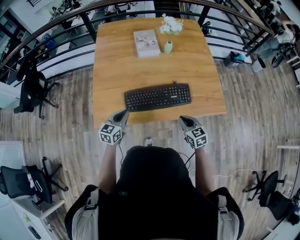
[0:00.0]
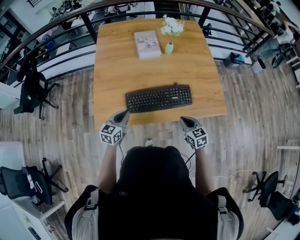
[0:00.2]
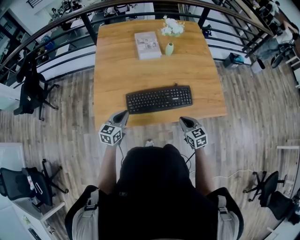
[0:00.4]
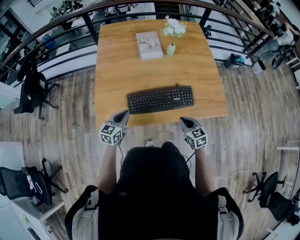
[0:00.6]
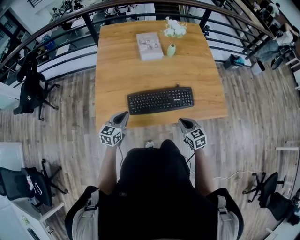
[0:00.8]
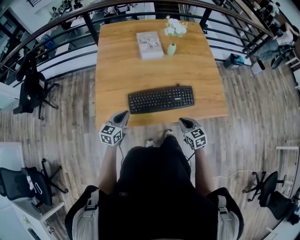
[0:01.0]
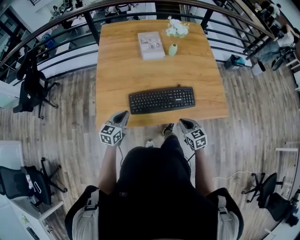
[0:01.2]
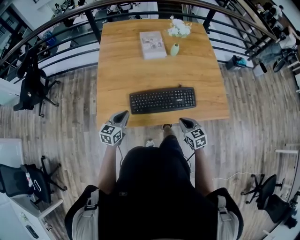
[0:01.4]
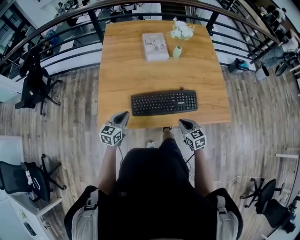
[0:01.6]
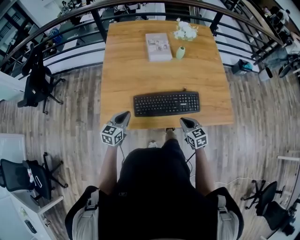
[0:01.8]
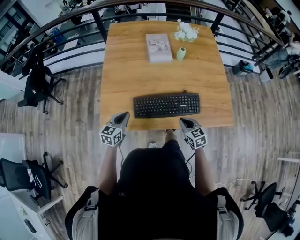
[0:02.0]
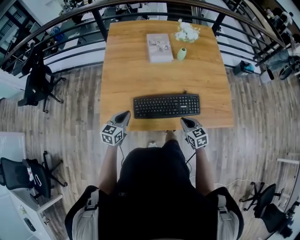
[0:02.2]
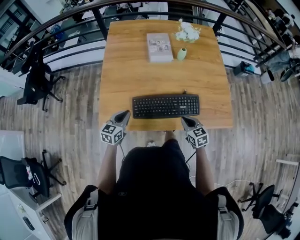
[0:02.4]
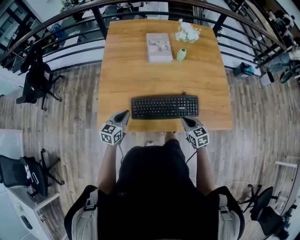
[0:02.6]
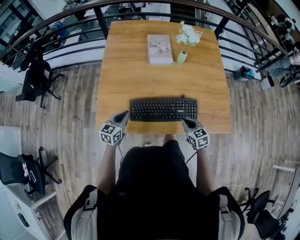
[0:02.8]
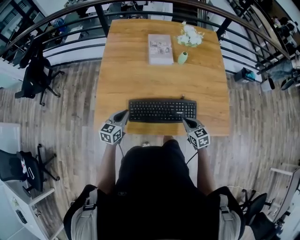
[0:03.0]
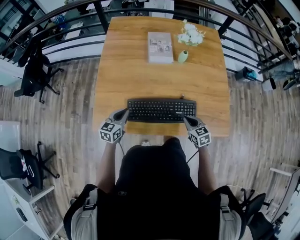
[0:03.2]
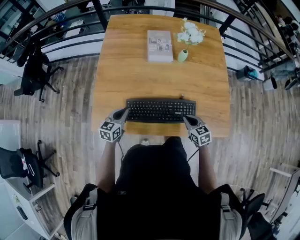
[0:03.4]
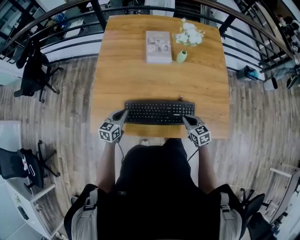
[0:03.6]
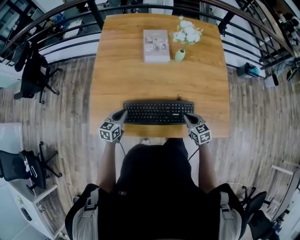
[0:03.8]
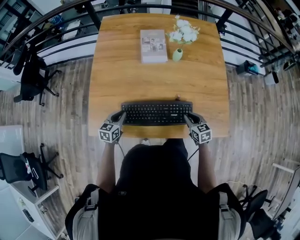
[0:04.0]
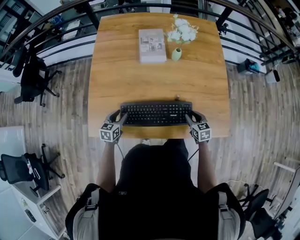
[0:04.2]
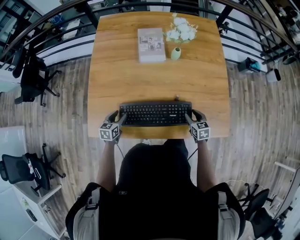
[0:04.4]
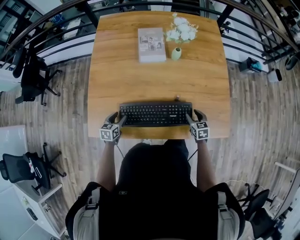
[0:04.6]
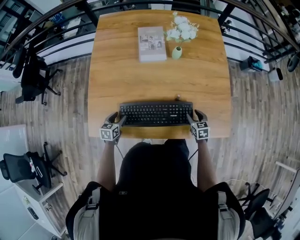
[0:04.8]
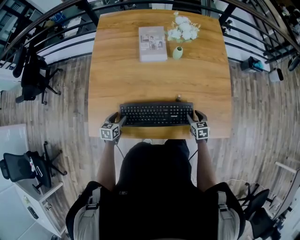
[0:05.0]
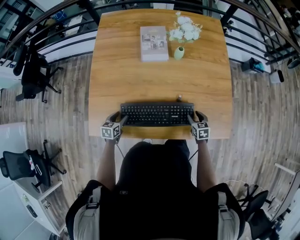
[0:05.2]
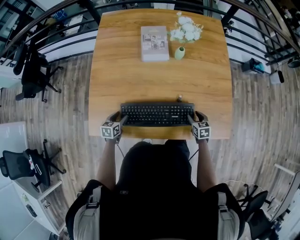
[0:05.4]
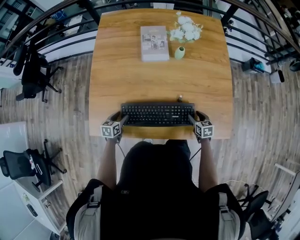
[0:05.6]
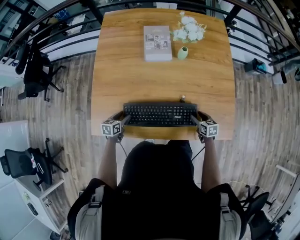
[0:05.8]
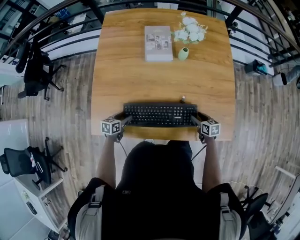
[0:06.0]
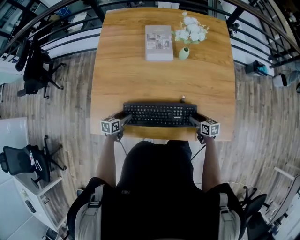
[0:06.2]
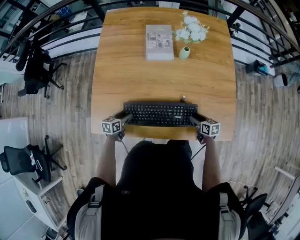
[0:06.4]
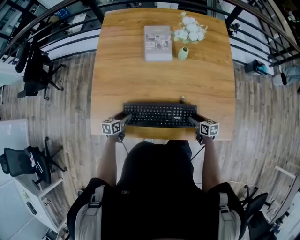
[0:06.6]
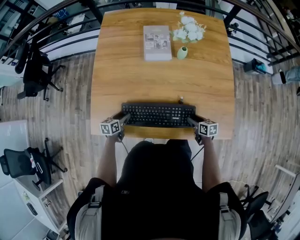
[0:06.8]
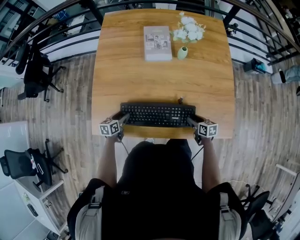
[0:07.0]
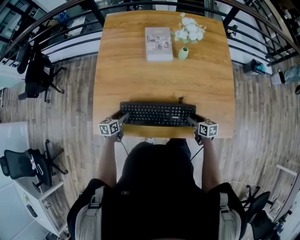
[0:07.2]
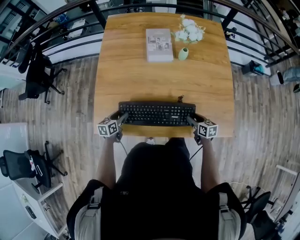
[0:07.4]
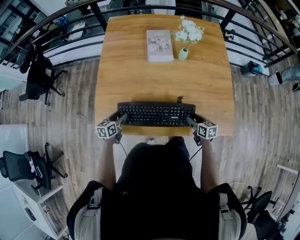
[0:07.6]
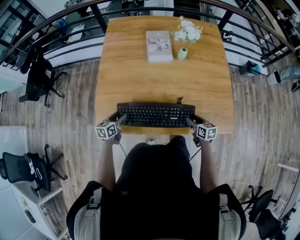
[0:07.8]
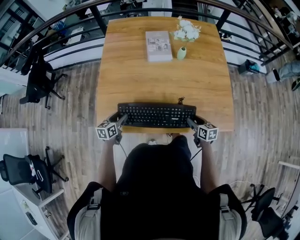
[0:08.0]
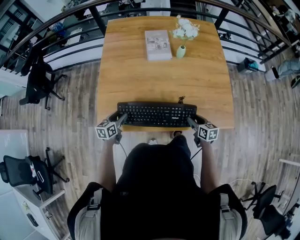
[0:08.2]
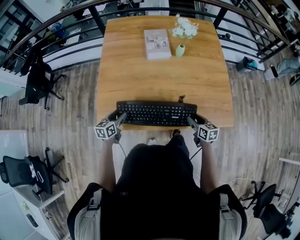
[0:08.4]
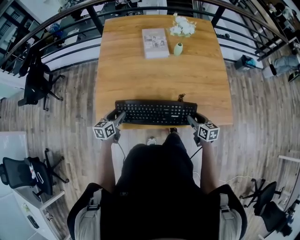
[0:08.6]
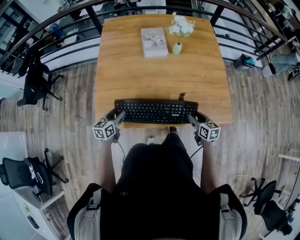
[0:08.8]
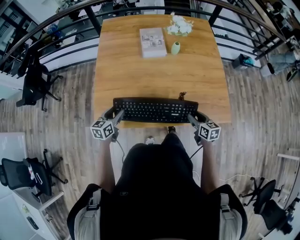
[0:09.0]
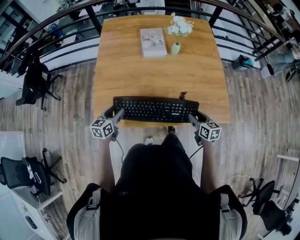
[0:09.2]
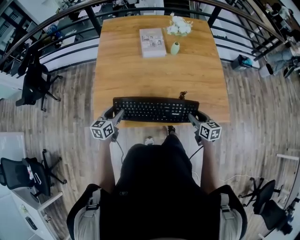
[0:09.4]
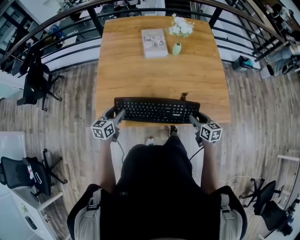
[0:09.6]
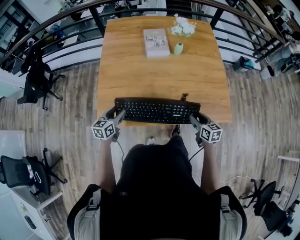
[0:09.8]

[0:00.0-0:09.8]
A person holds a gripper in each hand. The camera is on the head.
0:00.0 to 0:01.4: The grippers move only a little.
0:01.4 to 0:02.8: The left gripper ends up some 5 cm from where it was. Meanwhile the right gripper is displaced forward by some 10 cm.
0:02.8 to 0:04.2: The left gripper goes about 10 cm downward and forward, and opens up; the right gripper moves to the right, forward and downward, some 15 cm, and opens.
0:04.2 to 0:05.6: Both grippers move downward, about 5 cm. The right gripper opens.
0:05.6 to 0:07.0: The grippers make only small movements.
0:07.0 to 0:08.4: Both grippers move upward and backward, some 10 cm.
0:08.4 to 0:09.8: The right gripper shifts by approximately 5 cm, while the left gripper travels upward by some 5 cm.

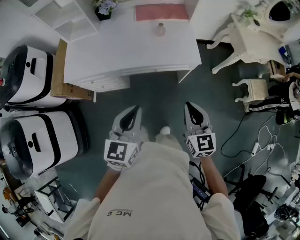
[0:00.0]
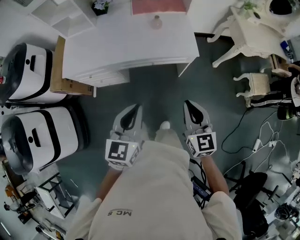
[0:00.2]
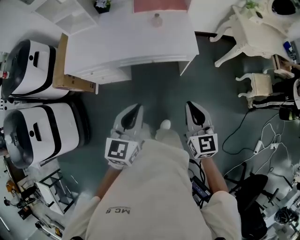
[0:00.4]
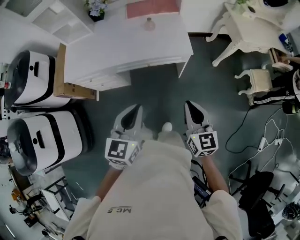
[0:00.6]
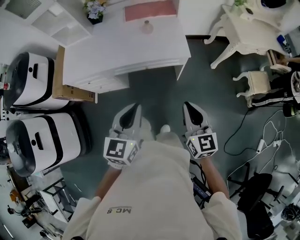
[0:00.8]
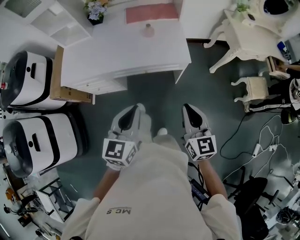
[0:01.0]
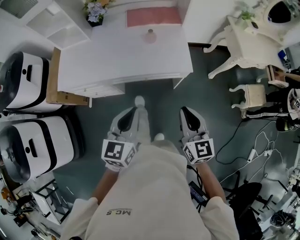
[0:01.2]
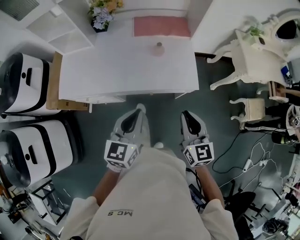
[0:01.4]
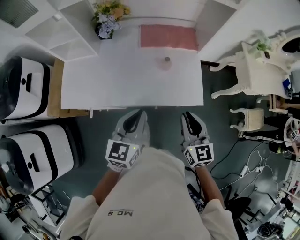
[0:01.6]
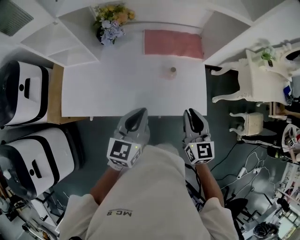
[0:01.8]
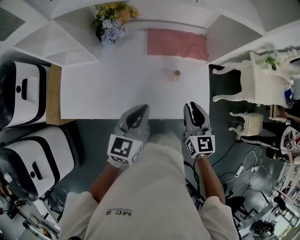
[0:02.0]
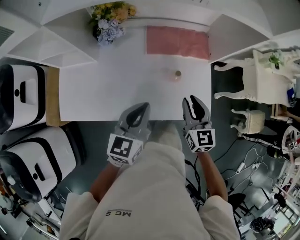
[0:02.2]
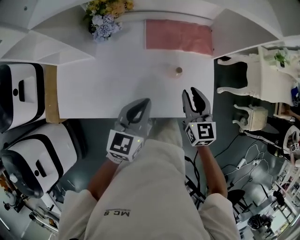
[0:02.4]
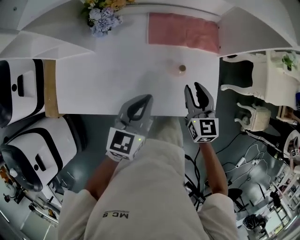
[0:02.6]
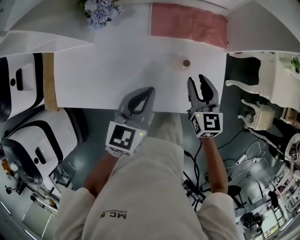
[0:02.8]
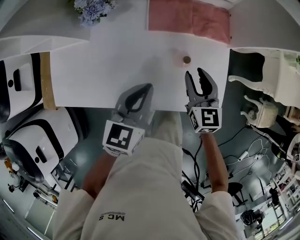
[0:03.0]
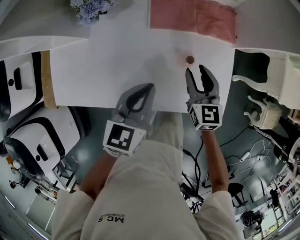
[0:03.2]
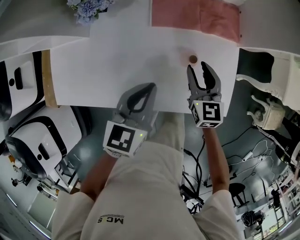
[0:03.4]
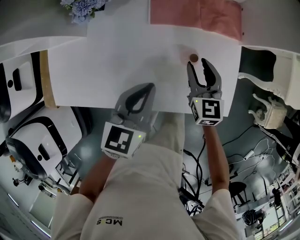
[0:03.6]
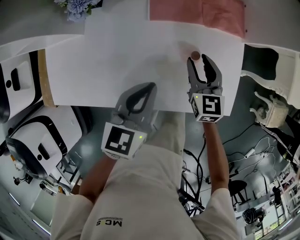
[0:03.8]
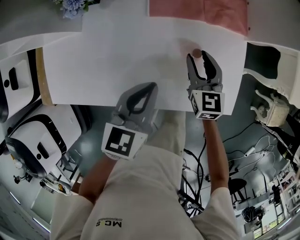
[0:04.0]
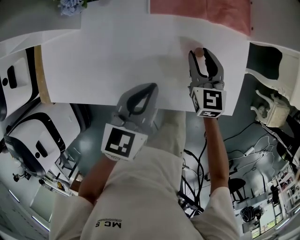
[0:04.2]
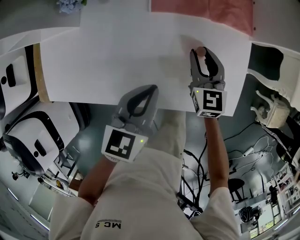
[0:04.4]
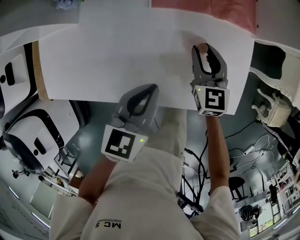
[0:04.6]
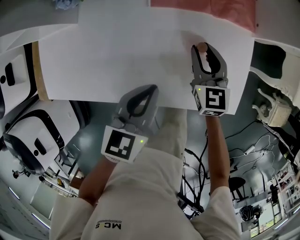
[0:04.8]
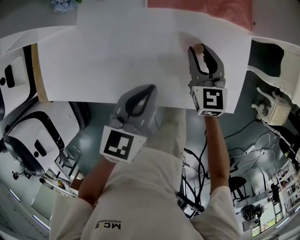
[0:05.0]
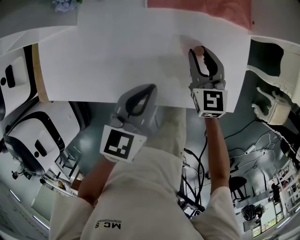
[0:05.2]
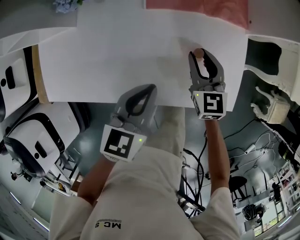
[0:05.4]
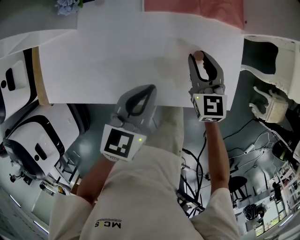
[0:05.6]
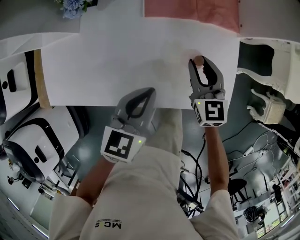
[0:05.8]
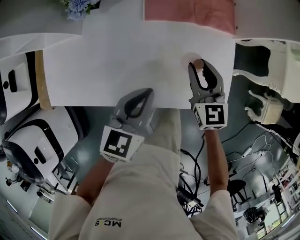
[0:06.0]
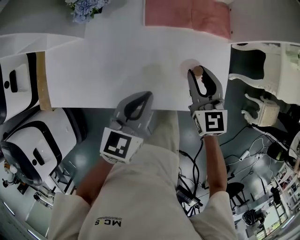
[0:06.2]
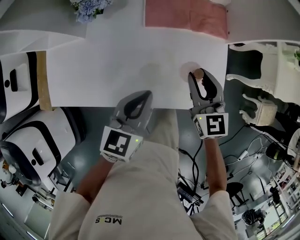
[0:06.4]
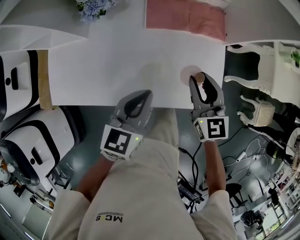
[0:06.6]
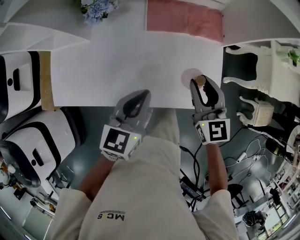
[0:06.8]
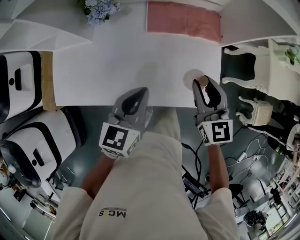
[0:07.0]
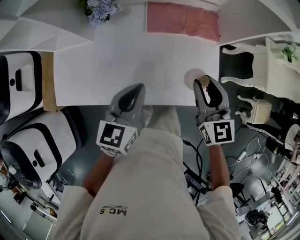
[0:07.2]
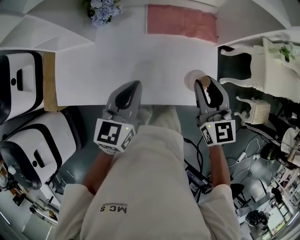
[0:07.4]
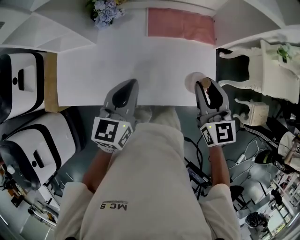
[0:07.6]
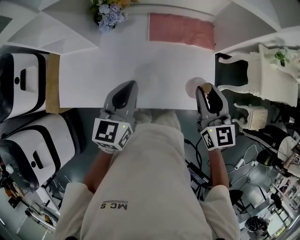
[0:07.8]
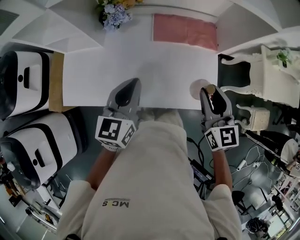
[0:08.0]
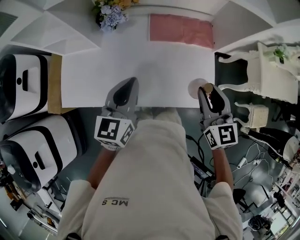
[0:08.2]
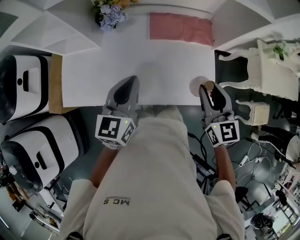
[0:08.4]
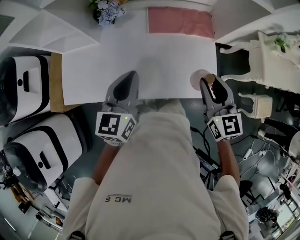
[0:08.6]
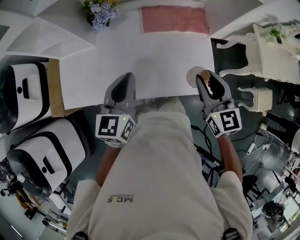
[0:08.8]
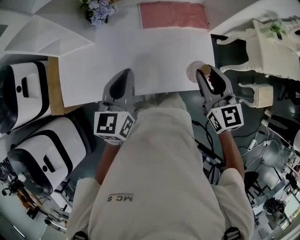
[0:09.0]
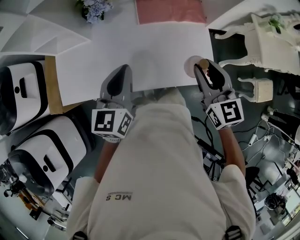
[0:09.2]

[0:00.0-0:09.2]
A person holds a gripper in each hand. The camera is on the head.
0:00.0 to 0:01.6: Both grippers move forward, some 30 cm.
0:01.6 to 0:03.0: The two grippers go approximately 30 cm forward and downward. The right gripper opens its fingers.
0:03.0 to 0:04.6: Both grippers travel together downward, roughly 10 cm.
0:04.6 to 0:06.2: The right gripper goes approximately 15 cm upward and backward, while the left gripper is displaced upward by approximately 10 cm.
0:06.2 to 0:07.6: The left gripper moves upward and to the left, about 15 cm; the right gripper moves upward and backward, about 20 cm.
0:07.6 to 0:09.2: The right gripper is displaced backward by about 5 cm.

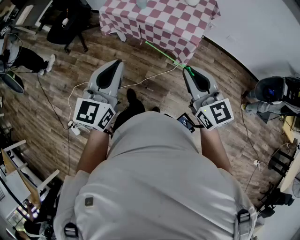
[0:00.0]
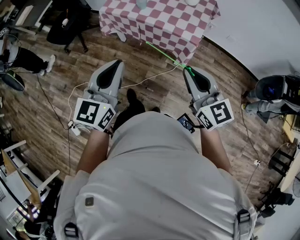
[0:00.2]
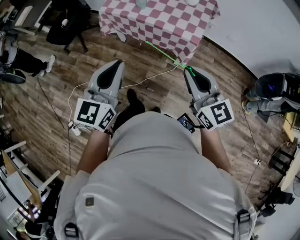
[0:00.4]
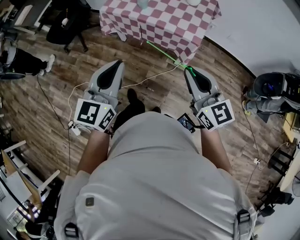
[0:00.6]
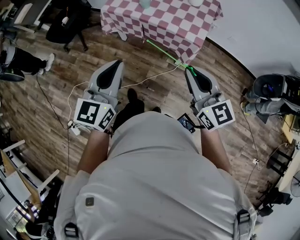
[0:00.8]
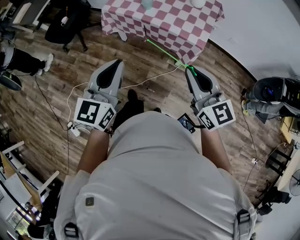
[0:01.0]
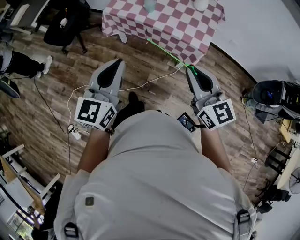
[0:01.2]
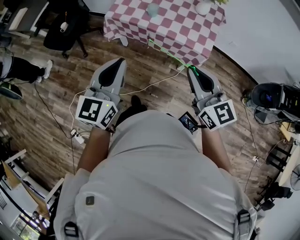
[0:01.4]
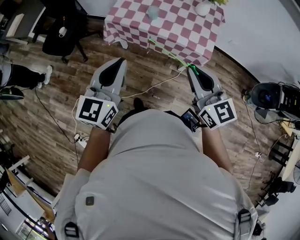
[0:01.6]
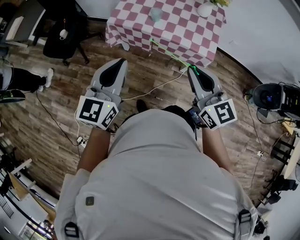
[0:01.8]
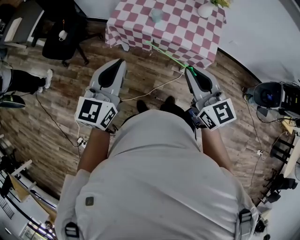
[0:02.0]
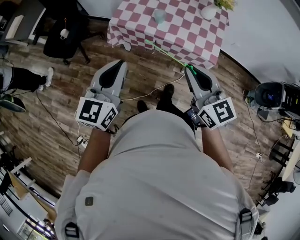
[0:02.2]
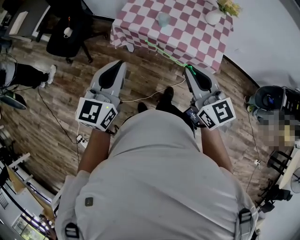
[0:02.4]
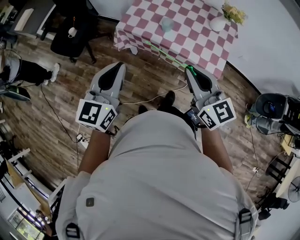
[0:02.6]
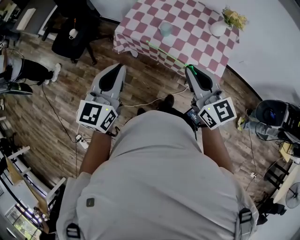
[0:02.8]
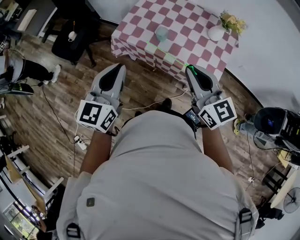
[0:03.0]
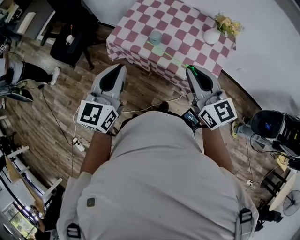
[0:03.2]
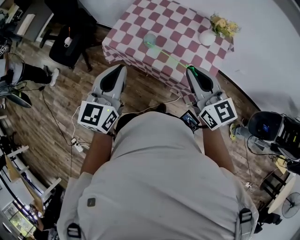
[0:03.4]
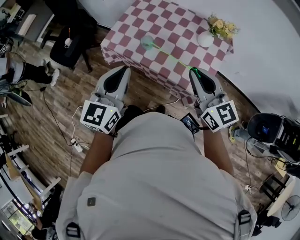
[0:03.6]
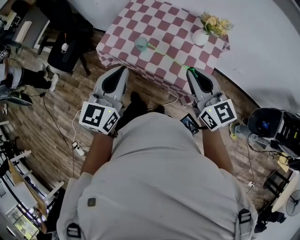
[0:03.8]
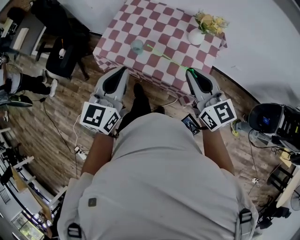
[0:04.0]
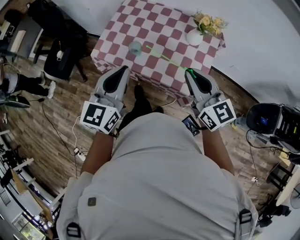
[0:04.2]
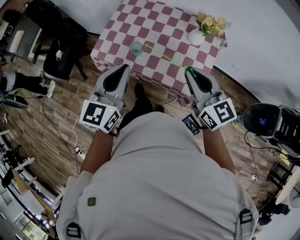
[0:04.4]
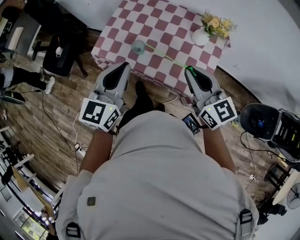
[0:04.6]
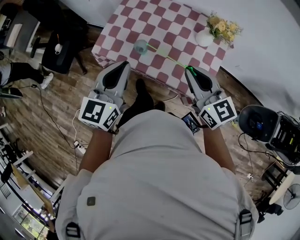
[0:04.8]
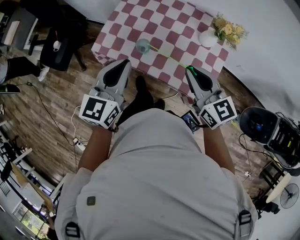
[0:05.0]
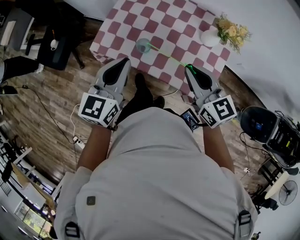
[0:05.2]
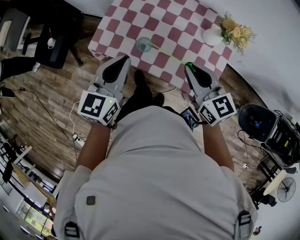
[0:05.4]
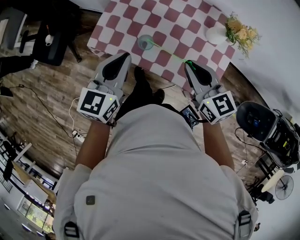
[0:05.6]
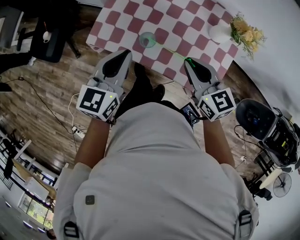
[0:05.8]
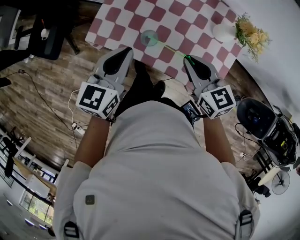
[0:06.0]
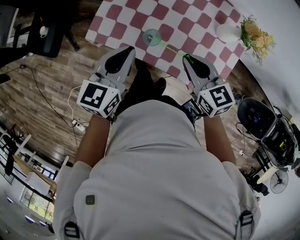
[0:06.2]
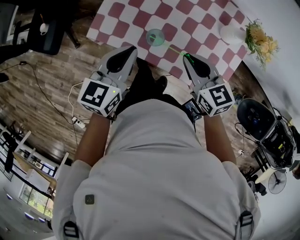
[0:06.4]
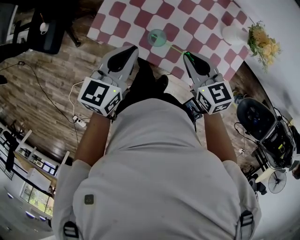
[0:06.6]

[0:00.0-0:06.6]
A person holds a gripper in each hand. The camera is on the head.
0:00.0 to 0:01.6: The two grippers go about 20 cm forward and to the left.
0:01.6 to 0:03.2: The right gripper goes approximately 20 cm forward, while the left gripper goes about 20 cm forward and to the right.
0:03.2 to 0:05.0: The left gripper goes some 15 cm forward and to the right. The right gripper is displaced forward, to the right and downward by some 15 cm.
0:05.0 to 0:06.6: The left gripper goes some 15 cm downward and forward; the right gripper moves downward, forward and to the left, about 20 cm, and turns by some 20 degrees.
